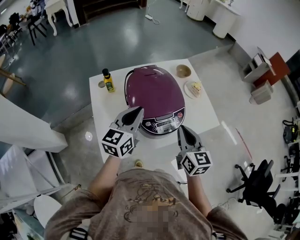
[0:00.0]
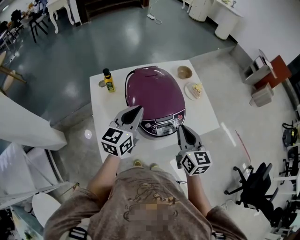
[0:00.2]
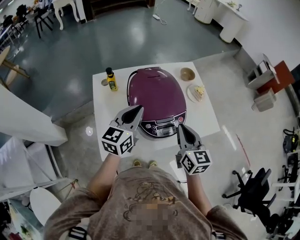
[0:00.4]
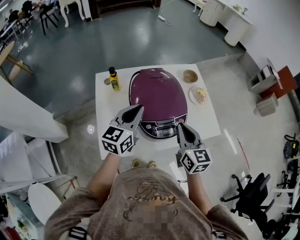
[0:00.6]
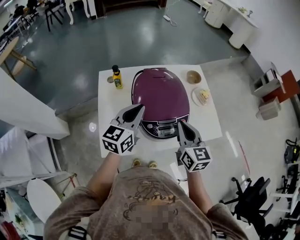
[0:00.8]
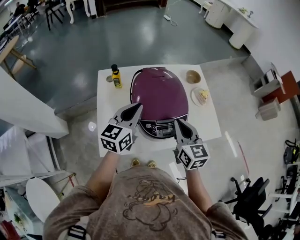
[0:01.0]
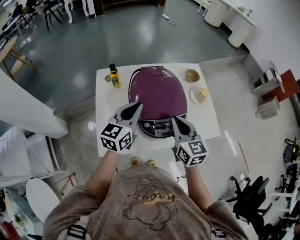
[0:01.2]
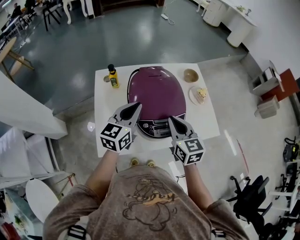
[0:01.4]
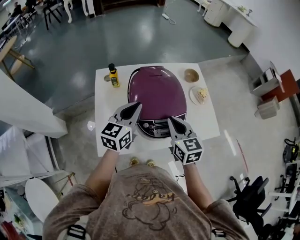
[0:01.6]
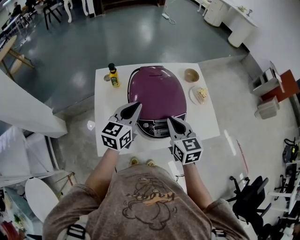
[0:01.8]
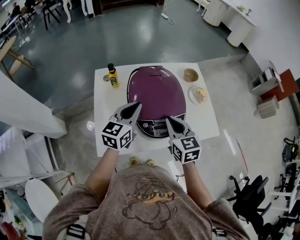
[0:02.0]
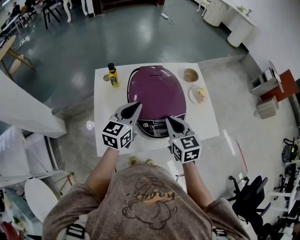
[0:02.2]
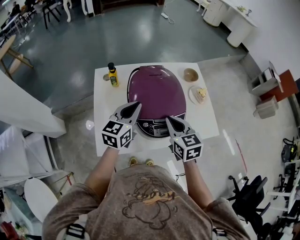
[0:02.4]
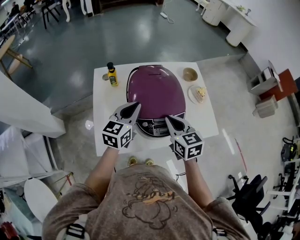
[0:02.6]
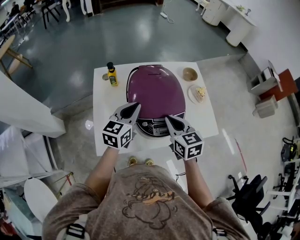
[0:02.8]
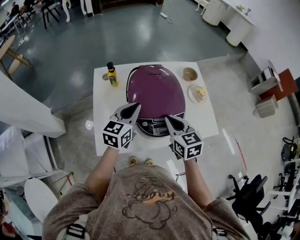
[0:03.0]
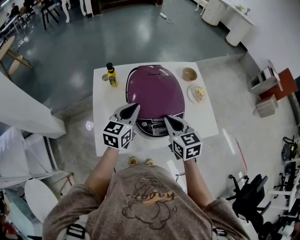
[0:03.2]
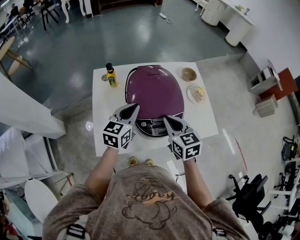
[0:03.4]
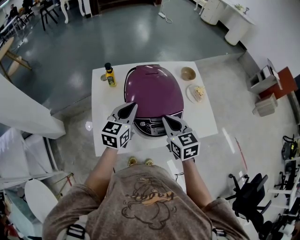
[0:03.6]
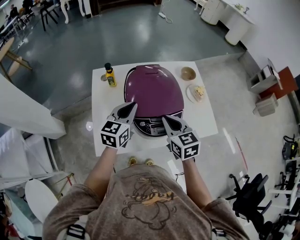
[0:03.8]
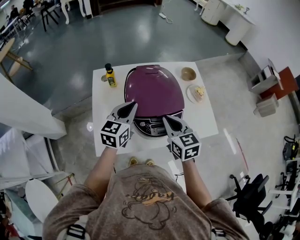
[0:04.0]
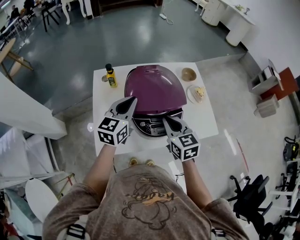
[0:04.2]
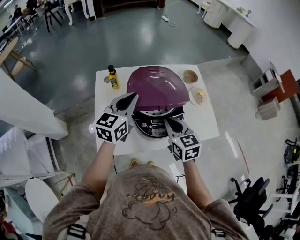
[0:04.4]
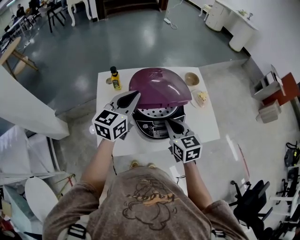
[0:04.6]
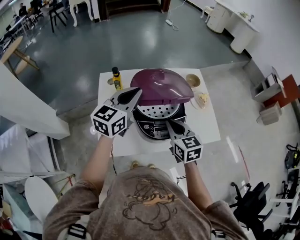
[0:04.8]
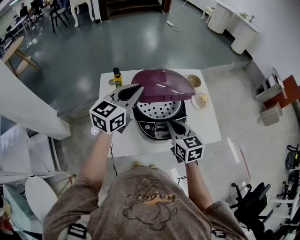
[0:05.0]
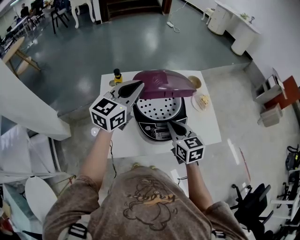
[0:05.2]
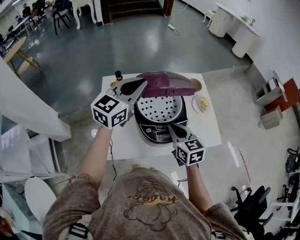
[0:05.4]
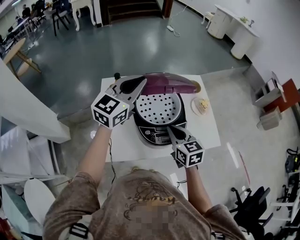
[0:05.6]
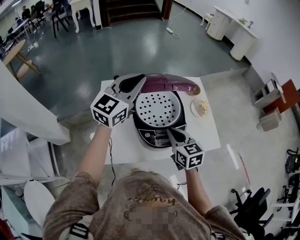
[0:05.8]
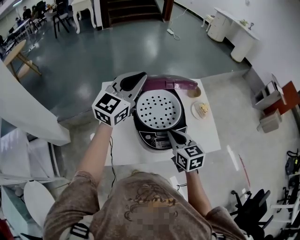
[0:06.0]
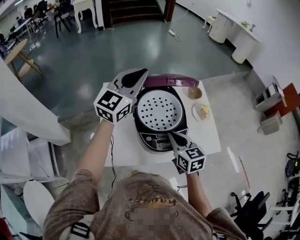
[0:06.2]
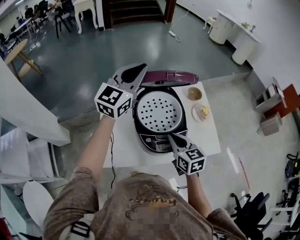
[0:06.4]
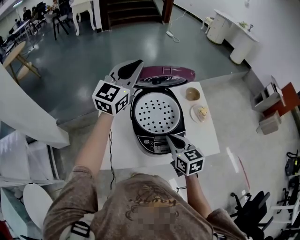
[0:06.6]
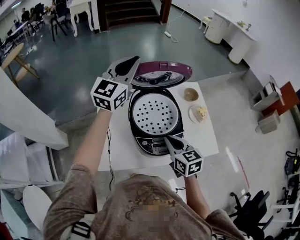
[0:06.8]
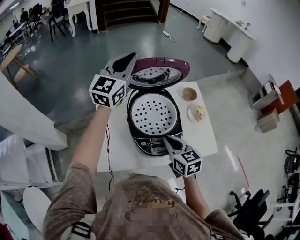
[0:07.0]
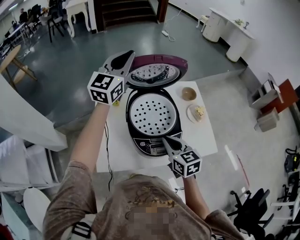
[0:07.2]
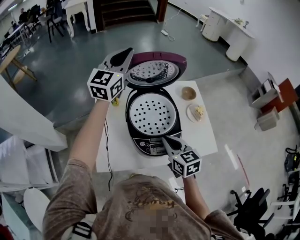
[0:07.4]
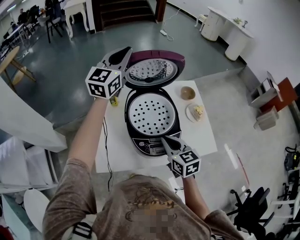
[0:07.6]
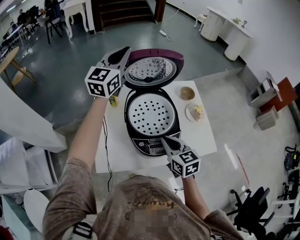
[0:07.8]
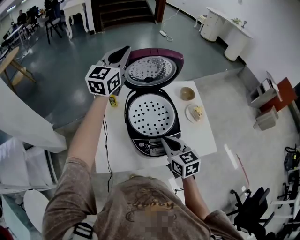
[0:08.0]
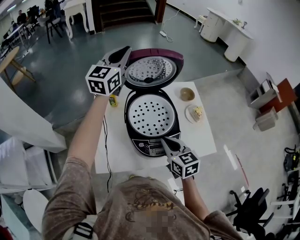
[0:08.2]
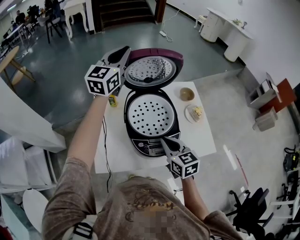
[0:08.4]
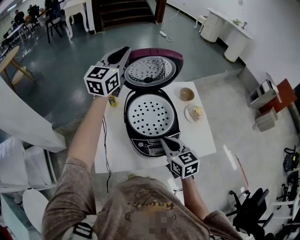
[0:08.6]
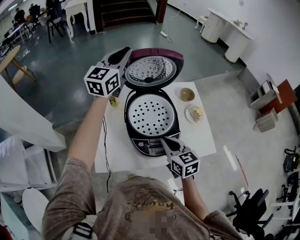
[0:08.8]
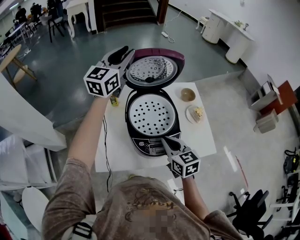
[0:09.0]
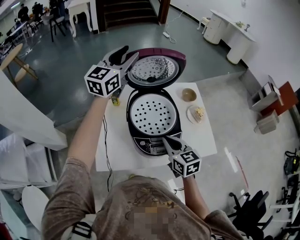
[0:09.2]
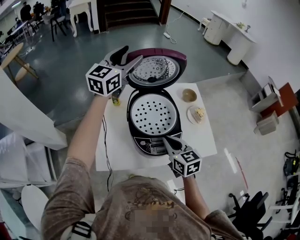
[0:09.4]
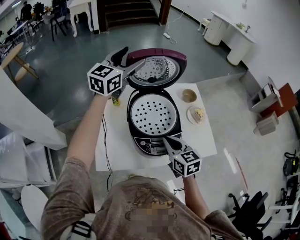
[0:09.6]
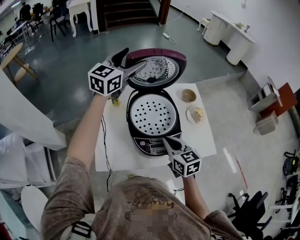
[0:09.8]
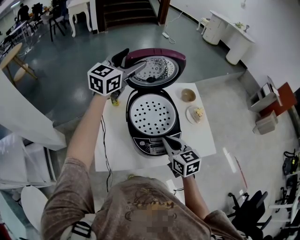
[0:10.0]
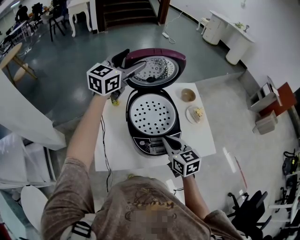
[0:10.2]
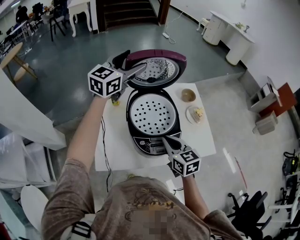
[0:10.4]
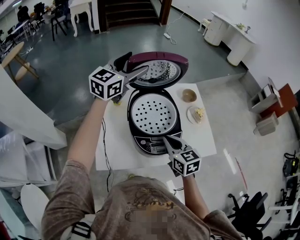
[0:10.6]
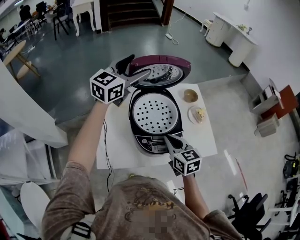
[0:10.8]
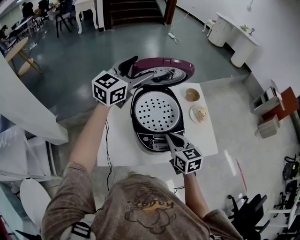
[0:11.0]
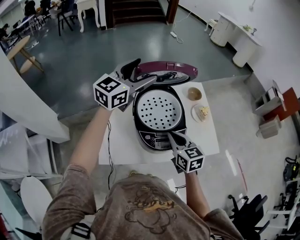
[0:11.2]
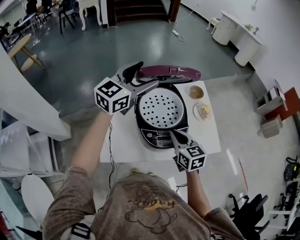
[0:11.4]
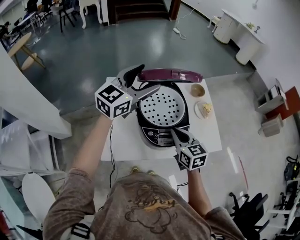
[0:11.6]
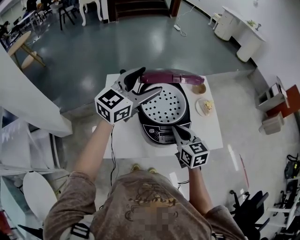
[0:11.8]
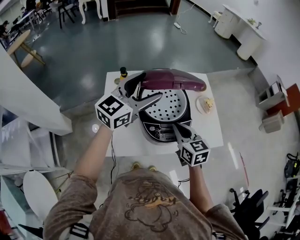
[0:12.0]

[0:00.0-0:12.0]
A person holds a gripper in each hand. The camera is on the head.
0:00.0 to 0:01.6: The right gripper shifts approximately 5 cm forward.
0:01.6 to 0:03.0: The grippers stay close to where they were, moving slightly.
0:03.0 to 0:04.4: The left gripper shifts approximately 5 cm upward.
0:04.4 to 0:06.0: The left gripper is displaced upward and forward by roughly 15 cm, and rotates approximately 20 degrees.
0:06.0 to 0:07.6: The left gripper moves forward, approximately 10 cm.
0:07.6 to 0:09.0: The grippers move only a little.
0:09.0 to 0:10.4: The left gripper opens its fingers.
0:10.4 to 0:12.0: The left gripper heads backward, covering some 15 cm.

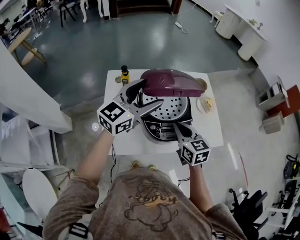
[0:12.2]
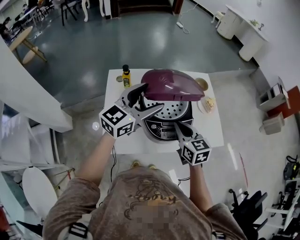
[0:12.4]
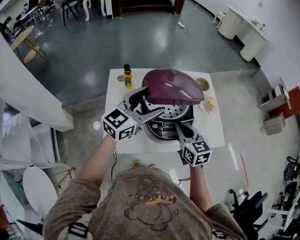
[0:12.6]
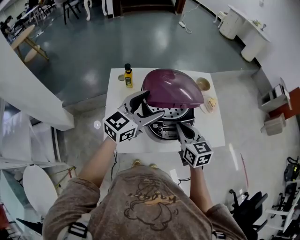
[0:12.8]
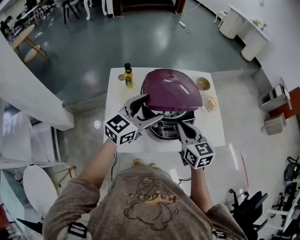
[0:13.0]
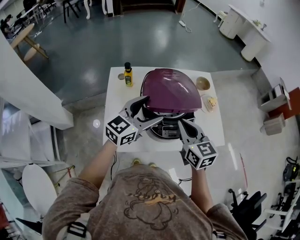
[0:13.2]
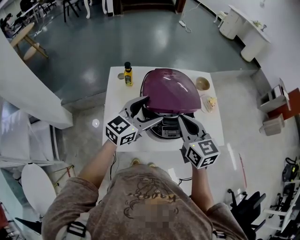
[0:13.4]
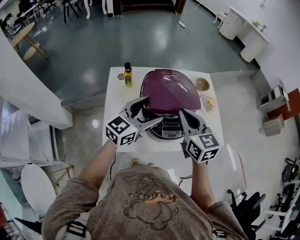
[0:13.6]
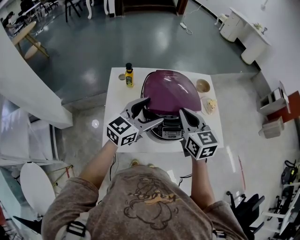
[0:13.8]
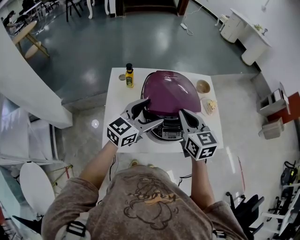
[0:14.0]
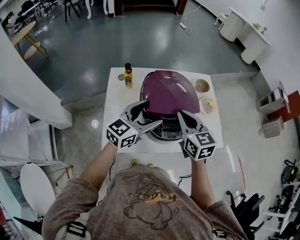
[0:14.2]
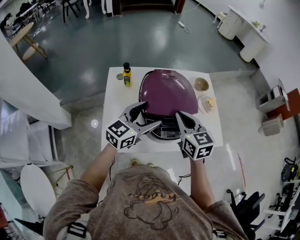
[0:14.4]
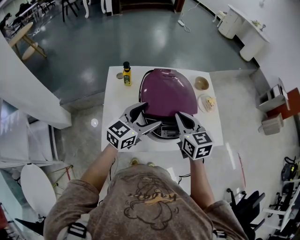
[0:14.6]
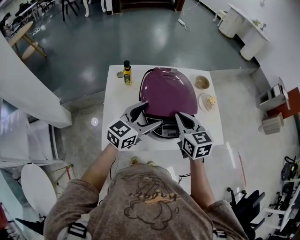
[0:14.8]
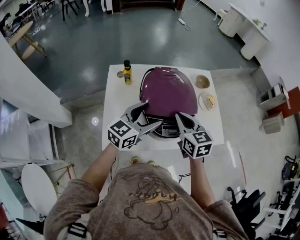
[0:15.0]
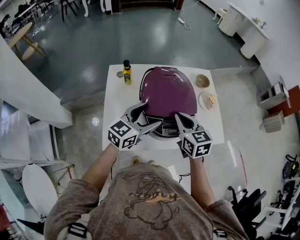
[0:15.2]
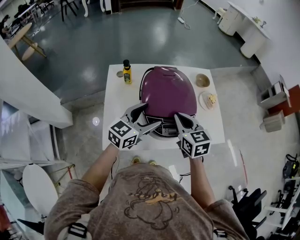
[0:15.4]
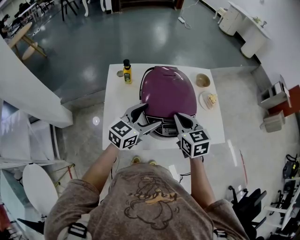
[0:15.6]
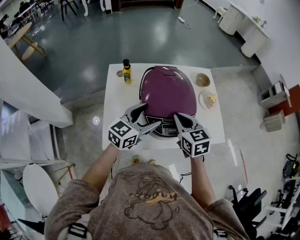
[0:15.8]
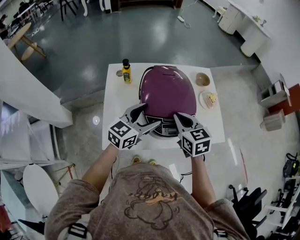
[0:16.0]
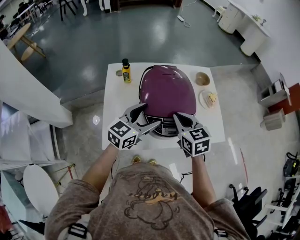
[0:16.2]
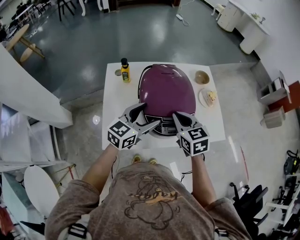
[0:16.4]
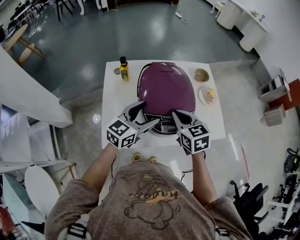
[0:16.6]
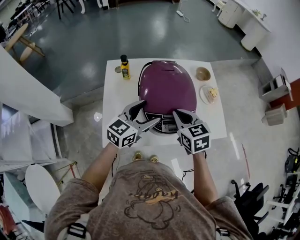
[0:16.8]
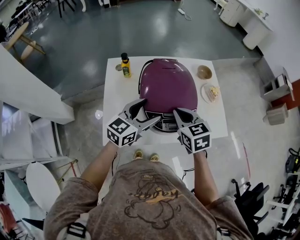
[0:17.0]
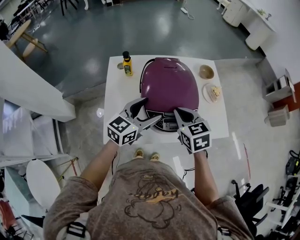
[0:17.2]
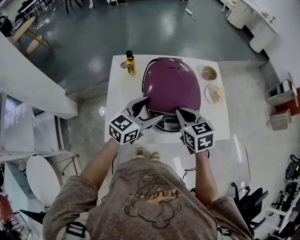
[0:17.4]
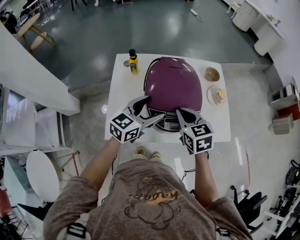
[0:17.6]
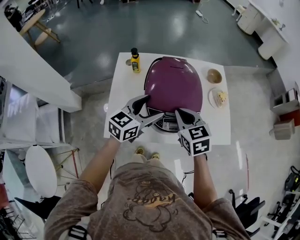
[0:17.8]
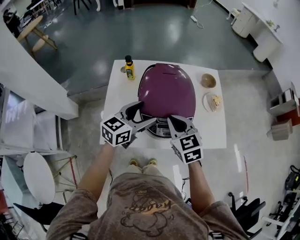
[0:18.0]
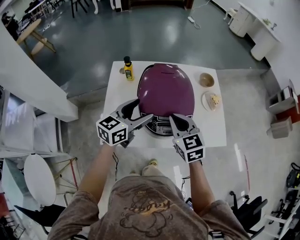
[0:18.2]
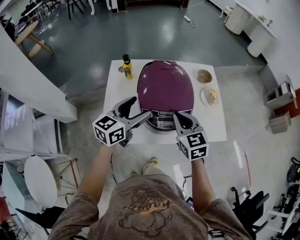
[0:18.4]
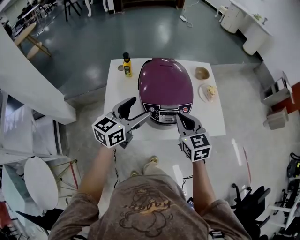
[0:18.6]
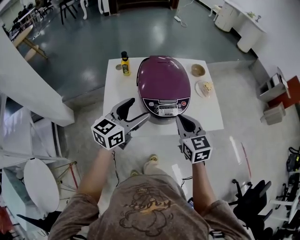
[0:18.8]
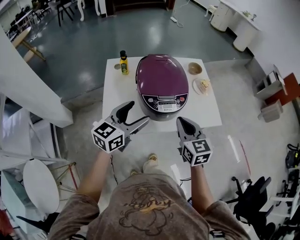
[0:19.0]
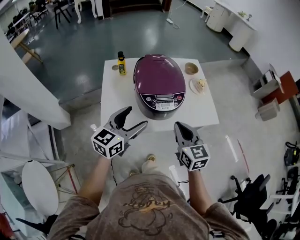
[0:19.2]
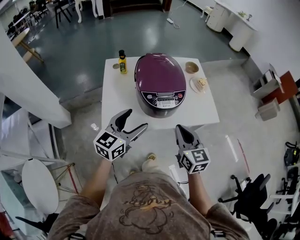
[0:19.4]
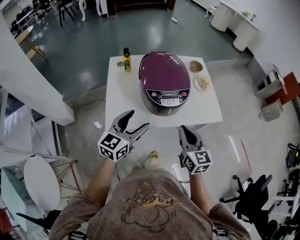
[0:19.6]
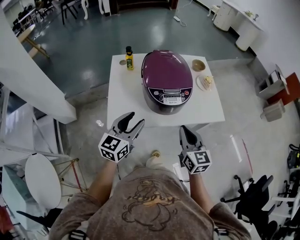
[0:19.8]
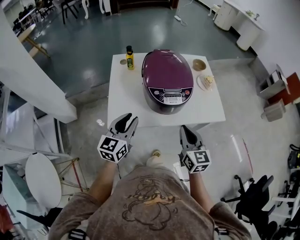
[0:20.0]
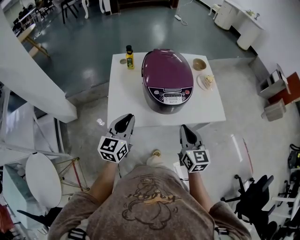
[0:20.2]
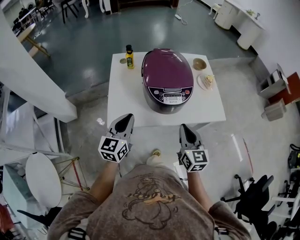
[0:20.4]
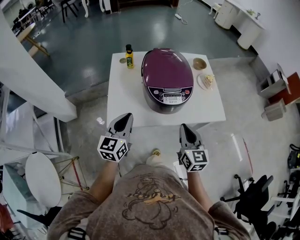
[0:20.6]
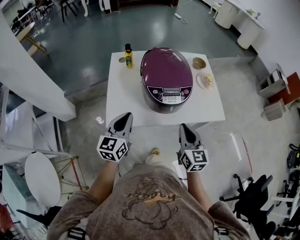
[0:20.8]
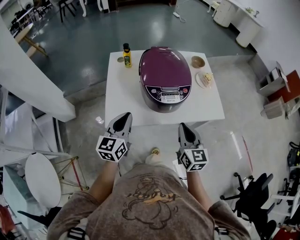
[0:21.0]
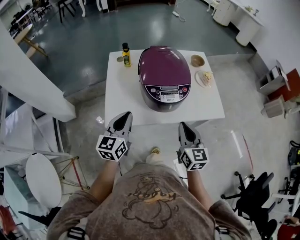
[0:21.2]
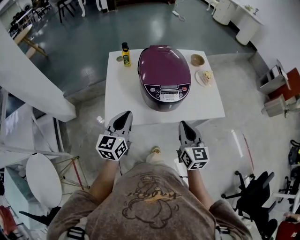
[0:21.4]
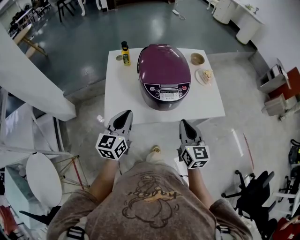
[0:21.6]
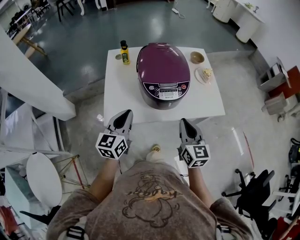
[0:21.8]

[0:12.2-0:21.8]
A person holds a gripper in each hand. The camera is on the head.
0:12.2 to 0:13.8: The left gripper heads downward, covering about 5 cm. Meanwhile the right gripper travels upward by approximately 10 cm.
0:13.8 to 0:15.4: Both grippers travel together downward, approximately 5 cm.
0:15.4 to 0:17.0: The grippers move only a little.
0:17.0 to 0:18.6: The left gripper ends up about 5 cm from where it was. Meanwhile the right gripper goes about 5 cm backward.
0:18.6 to 0:20.2: The right gripper goes approximately 15 cm backward, while the left gripper heads backward and downward, covering approximately 15 cm, and closes.
0:20.2 to 0:21.8: The grippers stay close to where they were, moving slightly.

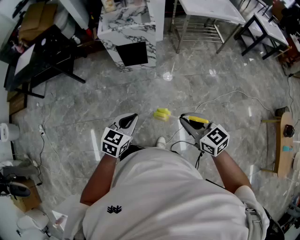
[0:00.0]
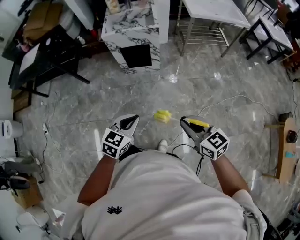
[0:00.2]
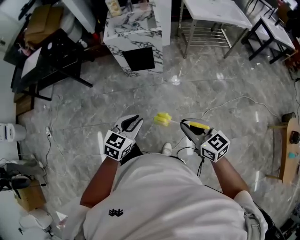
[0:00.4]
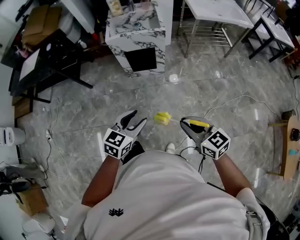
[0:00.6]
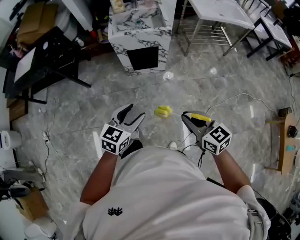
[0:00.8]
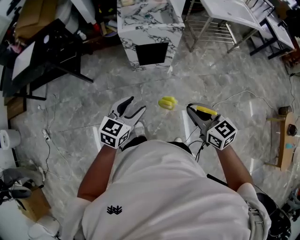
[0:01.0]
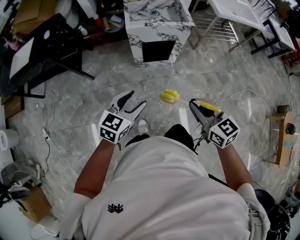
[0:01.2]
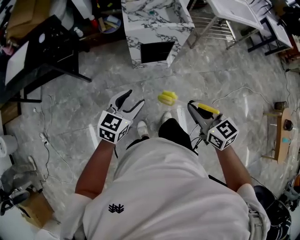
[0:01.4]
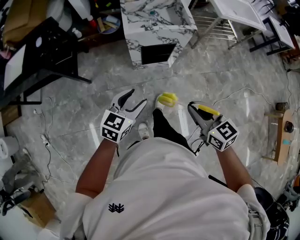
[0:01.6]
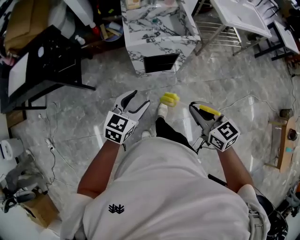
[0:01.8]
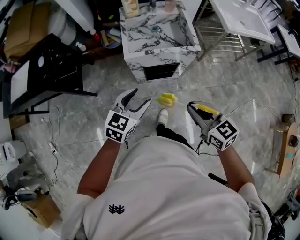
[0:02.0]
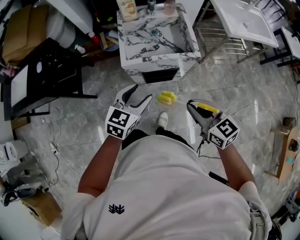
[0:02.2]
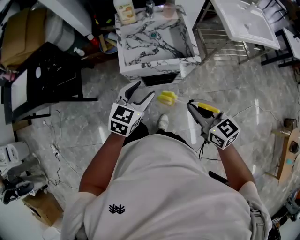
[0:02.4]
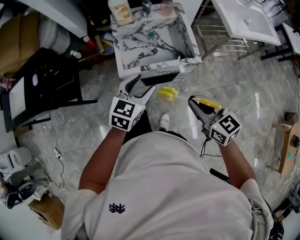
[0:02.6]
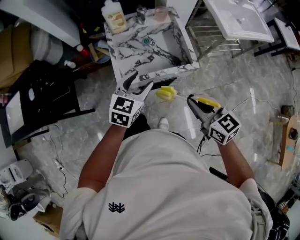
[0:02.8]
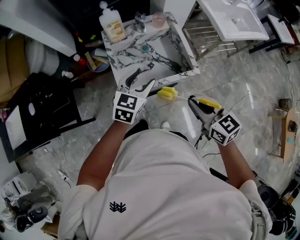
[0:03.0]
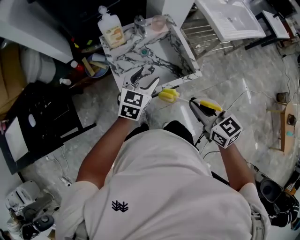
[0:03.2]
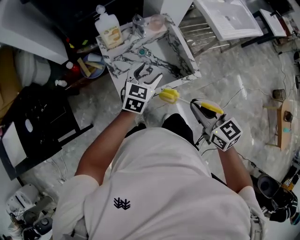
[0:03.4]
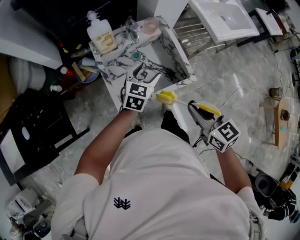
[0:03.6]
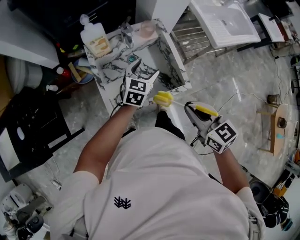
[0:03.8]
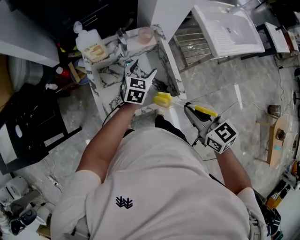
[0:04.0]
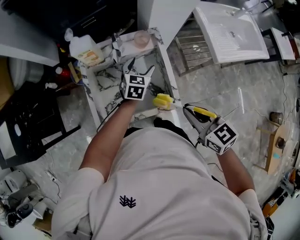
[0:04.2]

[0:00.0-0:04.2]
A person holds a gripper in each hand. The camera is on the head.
0:00.0 to 0:01.4: Both grippers move to the left and forward, about 35 cm. The left gripper opens up.
0:01.4 to 0:02.8: The grippers both shift forward by roughly 40 cm.
0:02.8 to 0:04.2: The right gripper shifts some 20 cm forward and to the right. The left gripper is displaced forward by about 30 cm.
